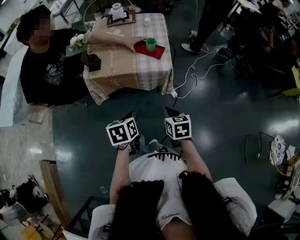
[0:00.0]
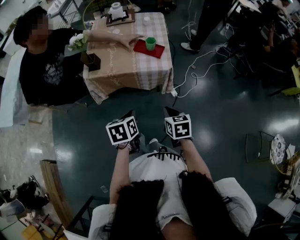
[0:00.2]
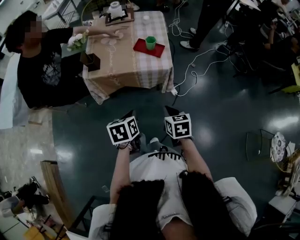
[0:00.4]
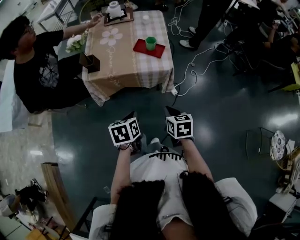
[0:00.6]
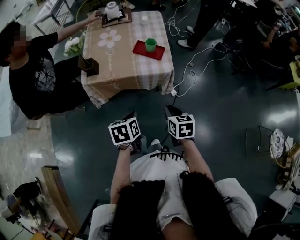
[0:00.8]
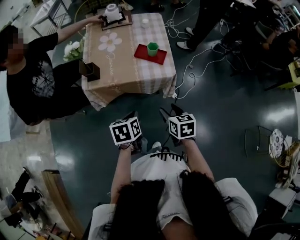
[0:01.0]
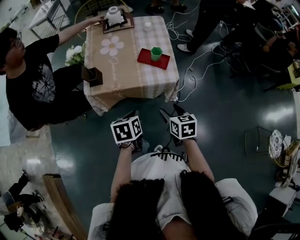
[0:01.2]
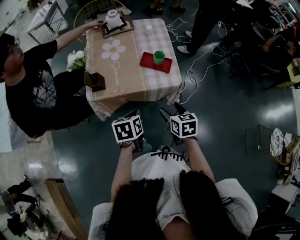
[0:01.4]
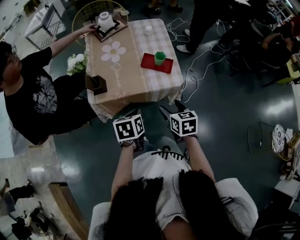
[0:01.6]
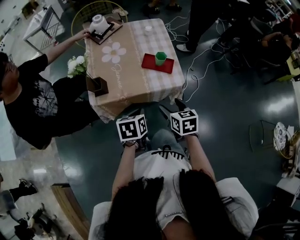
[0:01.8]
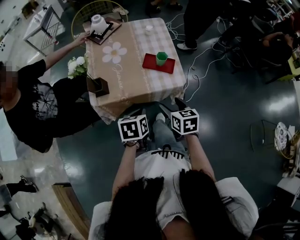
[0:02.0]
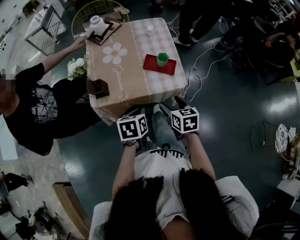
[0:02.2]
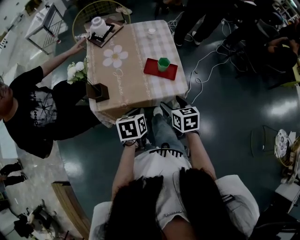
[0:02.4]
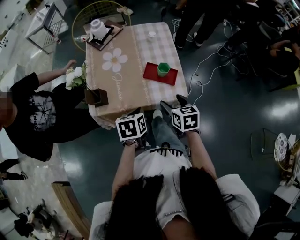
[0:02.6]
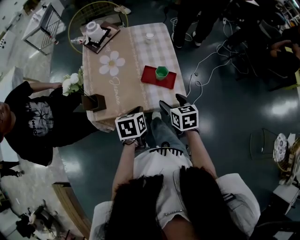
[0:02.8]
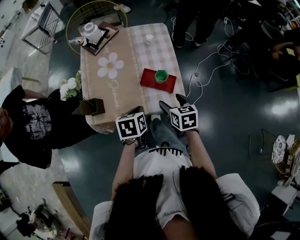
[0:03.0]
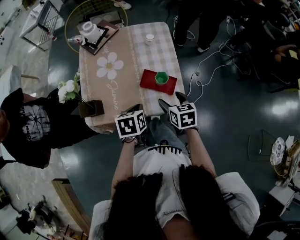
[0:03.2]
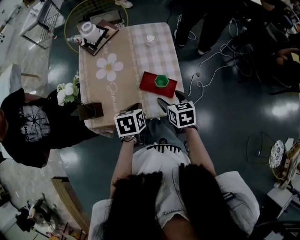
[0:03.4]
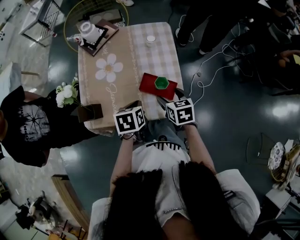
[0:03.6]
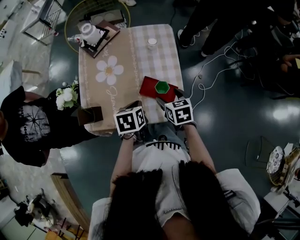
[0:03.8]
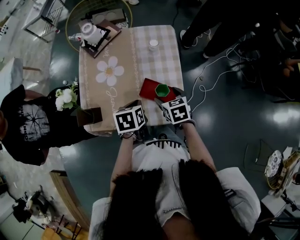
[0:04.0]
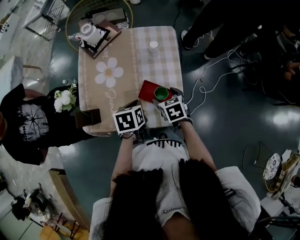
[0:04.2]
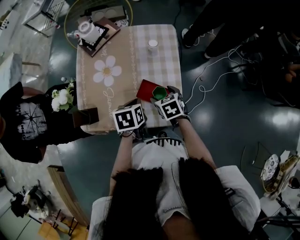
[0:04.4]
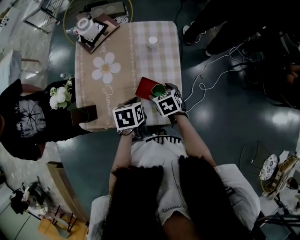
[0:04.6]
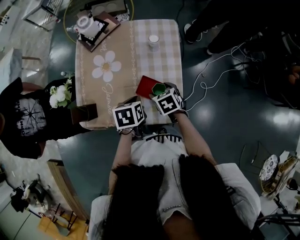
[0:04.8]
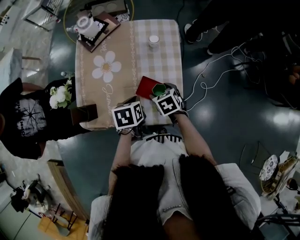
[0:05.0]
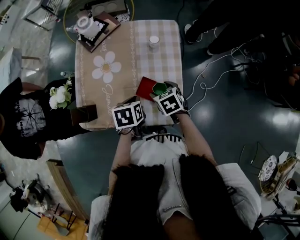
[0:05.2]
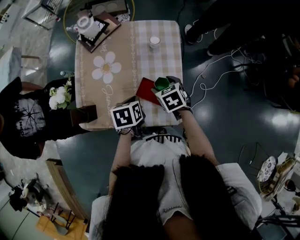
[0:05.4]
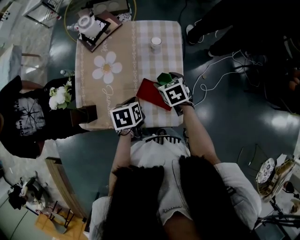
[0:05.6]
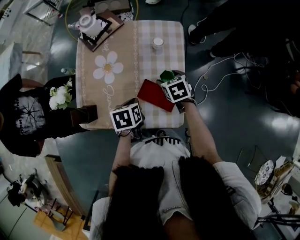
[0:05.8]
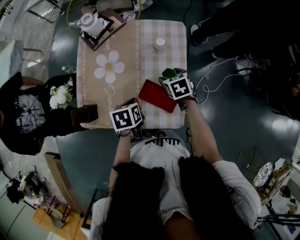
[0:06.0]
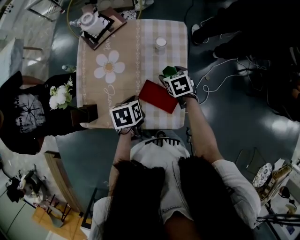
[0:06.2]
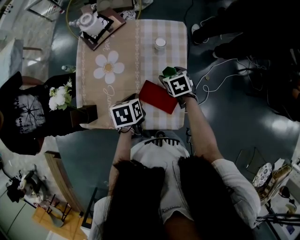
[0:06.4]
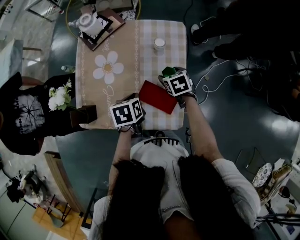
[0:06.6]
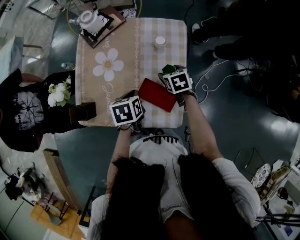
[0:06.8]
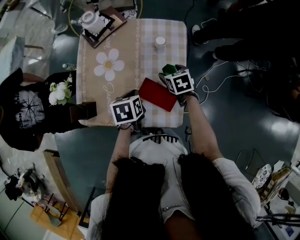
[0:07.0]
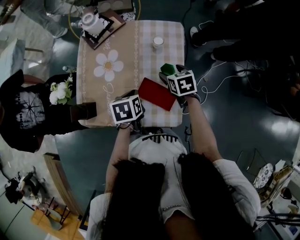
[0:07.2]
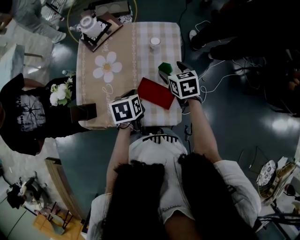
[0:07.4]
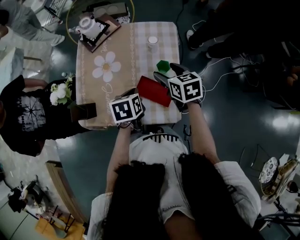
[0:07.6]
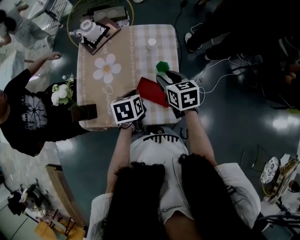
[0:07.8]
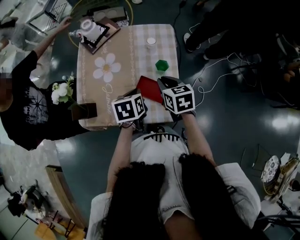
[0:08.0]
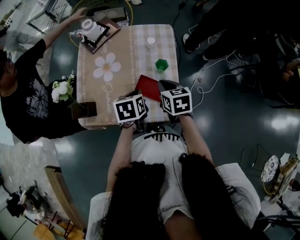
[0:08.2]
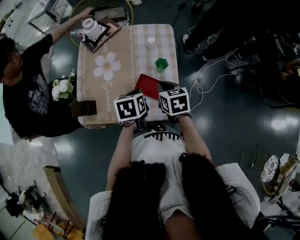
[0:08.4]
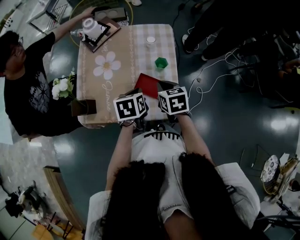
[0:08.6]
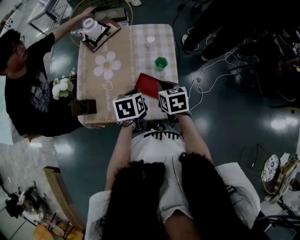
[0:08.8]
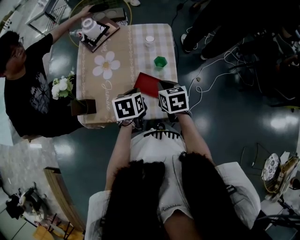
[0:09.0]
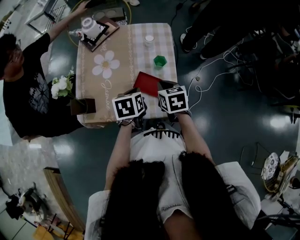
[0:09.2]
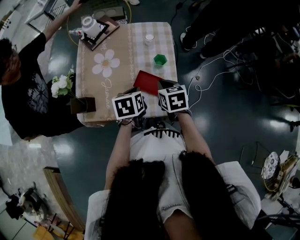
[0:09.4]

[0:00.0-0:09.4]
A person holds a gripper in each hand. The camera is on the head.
0:00.0 to 0:01.6: The two grippers go roughly 20 cm forward and to the left. The right gripper opens up.
0:01.6 to 0:03.2: Both grippers move forward, roughly 20 cm.
0:03.2 to 0:04.8: The left gripper is displaced forward by approximately 10 cm, while the right gripper travels forward and downward by some 15 cm, and changes its angle by approximately 30 degrees.
0:04.8 to 0:06.2: The right gripper moves forward, roughly 10 cm.
0:06.2 to 0:07.8: The right gripper travels upward and backward by roughly 15 cm, turns by about 20 degrees, and closes, while the left gripper moves approximately 5 cm.
0:07.8 to 0:09.4: The right gripper moves backward, some 5 cm, and closes its fingers.

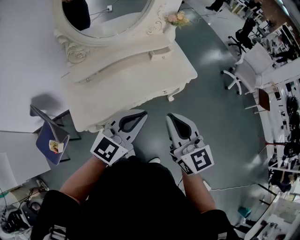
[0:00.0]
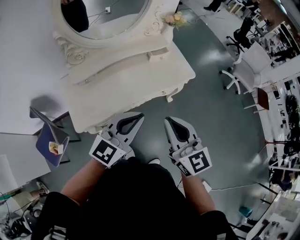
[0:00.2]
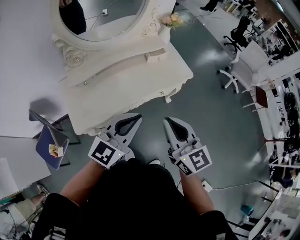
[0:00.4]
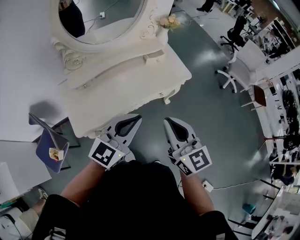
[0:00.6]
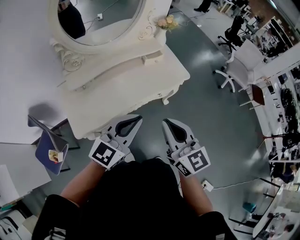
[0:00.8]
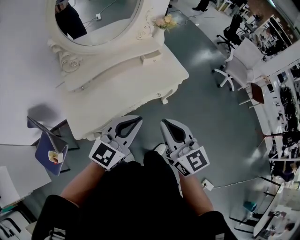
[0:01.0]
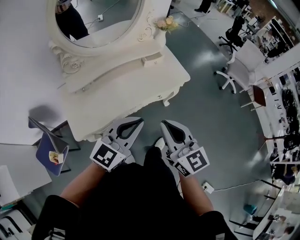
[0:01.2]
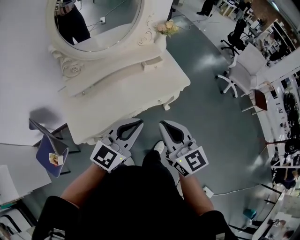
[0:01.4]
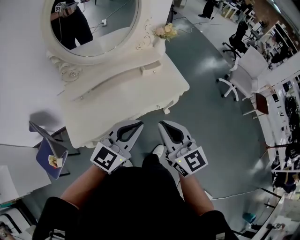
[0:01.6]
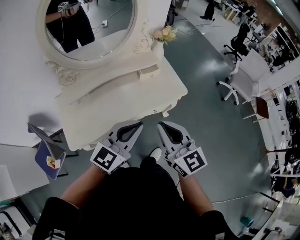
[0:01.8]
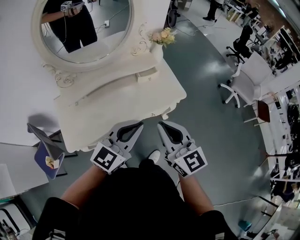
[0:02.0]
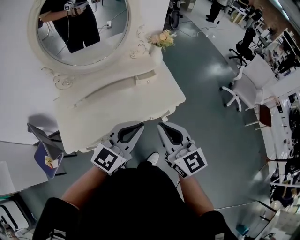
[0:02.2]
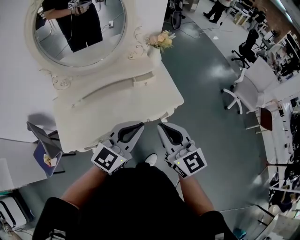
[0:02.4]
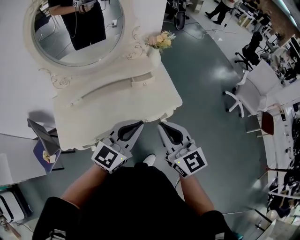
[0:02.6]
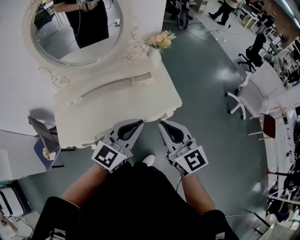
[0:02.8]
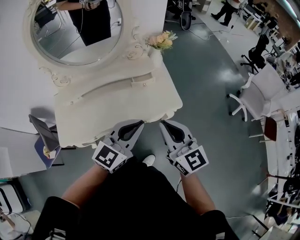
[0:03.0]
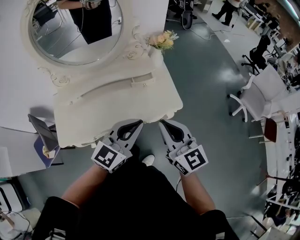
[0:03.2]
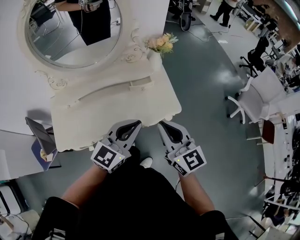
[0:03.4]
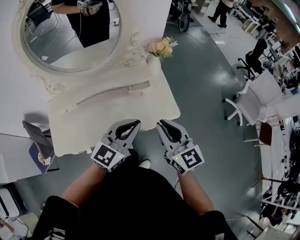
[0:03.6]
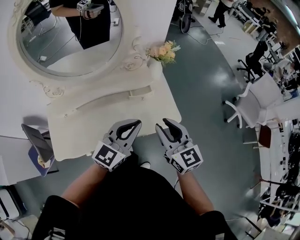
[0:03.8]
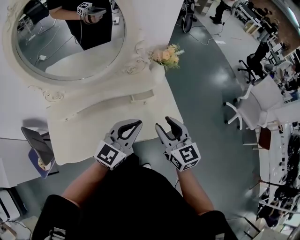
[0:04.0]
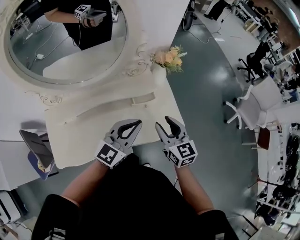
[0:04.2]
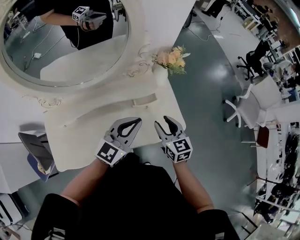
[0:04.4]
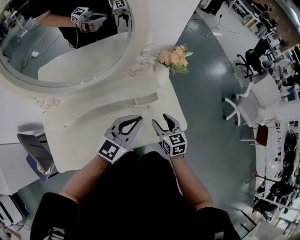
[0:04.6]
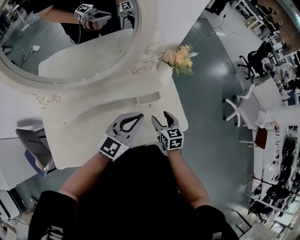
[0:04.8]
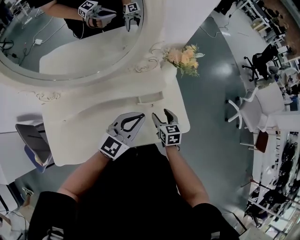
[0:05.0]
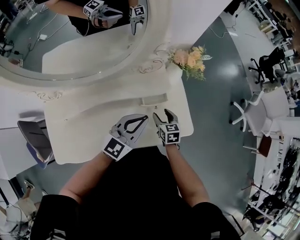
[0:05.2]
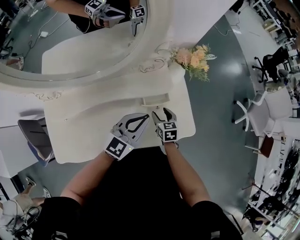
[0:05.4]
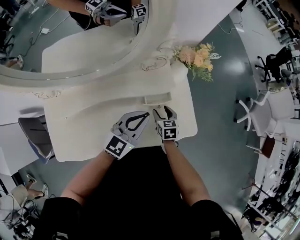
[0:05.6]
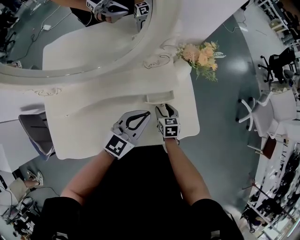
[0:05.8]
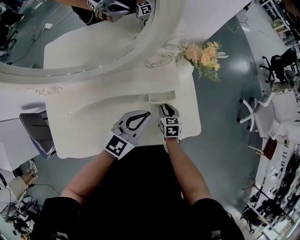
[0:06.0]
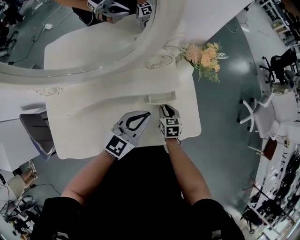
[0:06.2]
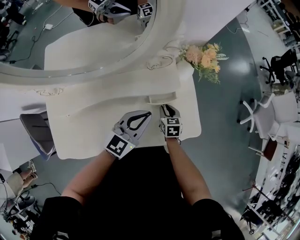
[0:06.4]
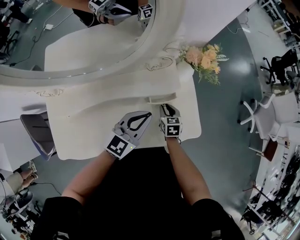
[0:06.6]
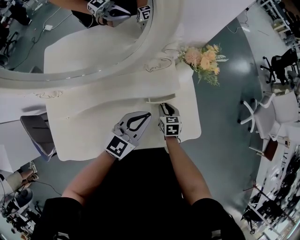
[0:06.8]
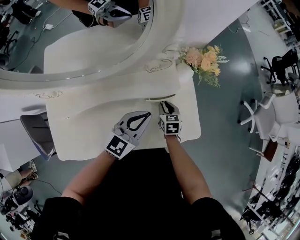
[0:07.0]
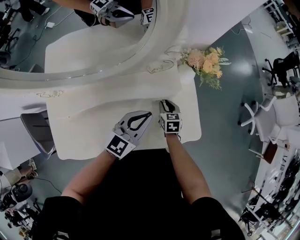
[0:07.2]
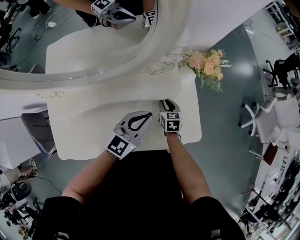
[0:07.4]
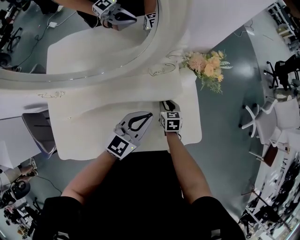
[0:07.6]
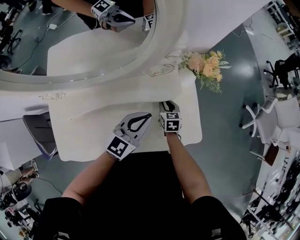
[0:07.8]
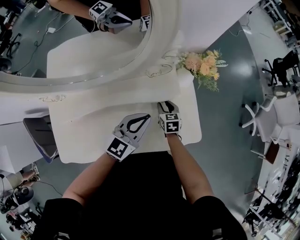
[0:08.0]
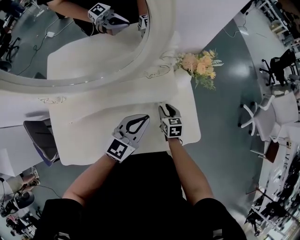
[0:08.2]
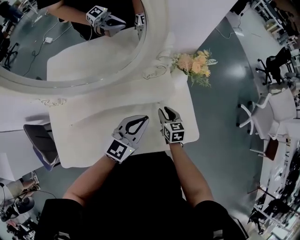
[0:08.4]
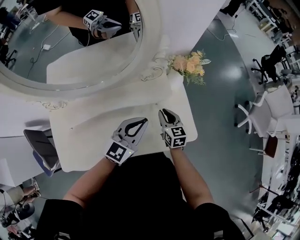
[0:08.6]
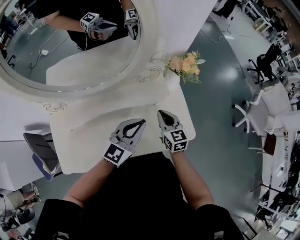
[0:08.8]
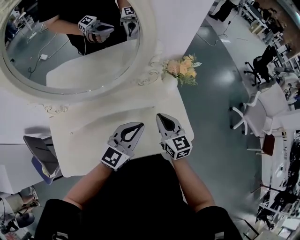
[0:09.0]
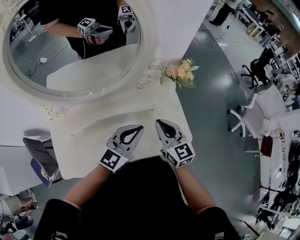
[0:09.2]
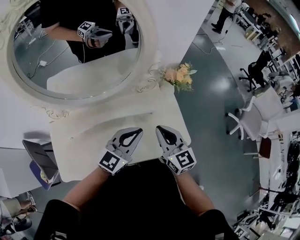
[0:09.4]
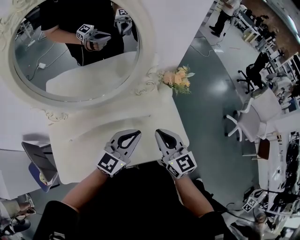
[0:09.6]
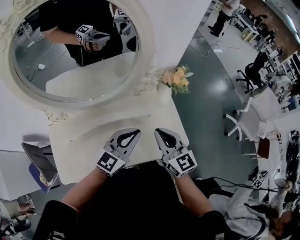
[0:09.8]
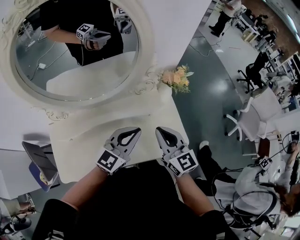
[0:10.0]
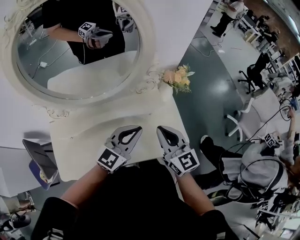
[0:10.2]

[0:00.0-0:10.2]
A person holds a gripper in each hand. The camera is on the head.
0:00.0 to 0:01.4: The grippers move only a little.
0:01.4 to 0:03.0: The two grippers go approximately 25 cm to the right and forward.
0:03.0 to 0:04.4: The left gripper is displaced forward by roughly 20 cm; the right gripper shifts roughly 30 cm forward and downward, turns by some 20 degrees, and opens.
0:04.4 to 0:05.8: The right gripper moves downward and forward, some 25 cm, and changes its angle by roughly 20 degrees. Meanwhile the left gripper is displaced downward and forward by roughly 10 cm.
0:05.8 to 0:07.2: The right gripper closes its fingers.
0:07.2 to 0:08.8: The left gripper travels upward by about 5 cm. Meanwhile the right gripper travels upward by roughly 15 cm, rotates roughly 20 degrees, and closes up.
0:08.8 to 0:10.2: The right gripper moves upward and backward, approximately 20 cm, while the left gripper travels upward by roughly 5 cm.

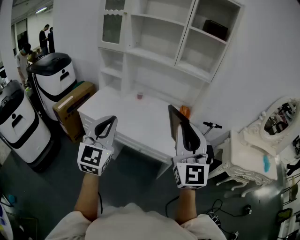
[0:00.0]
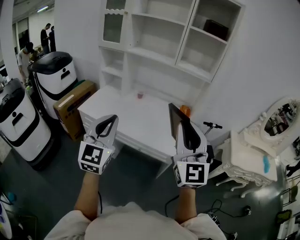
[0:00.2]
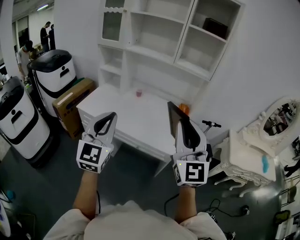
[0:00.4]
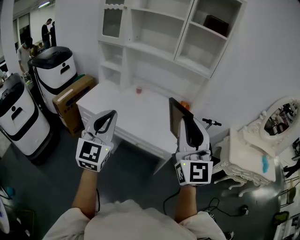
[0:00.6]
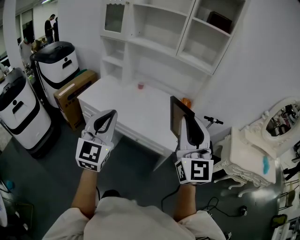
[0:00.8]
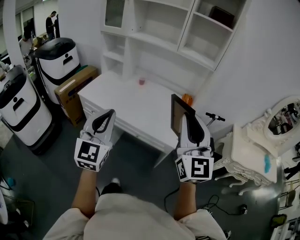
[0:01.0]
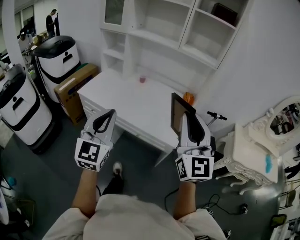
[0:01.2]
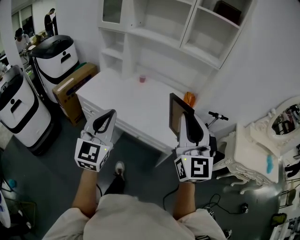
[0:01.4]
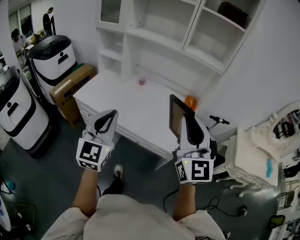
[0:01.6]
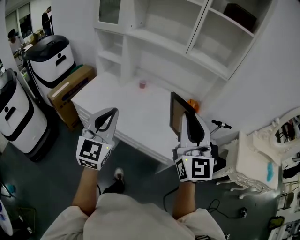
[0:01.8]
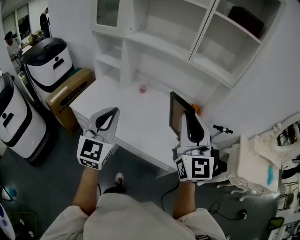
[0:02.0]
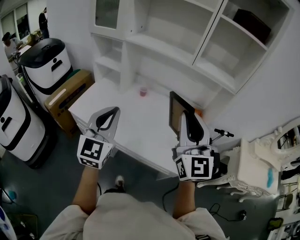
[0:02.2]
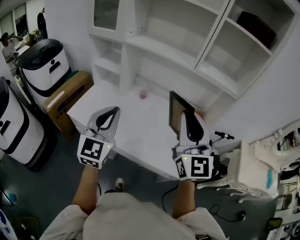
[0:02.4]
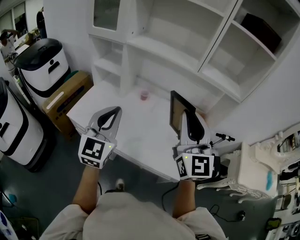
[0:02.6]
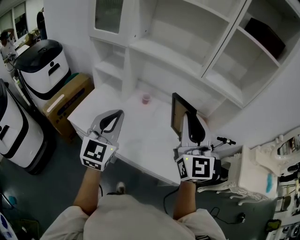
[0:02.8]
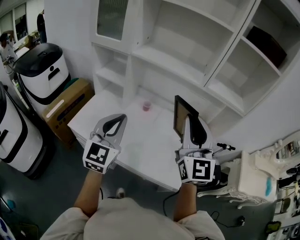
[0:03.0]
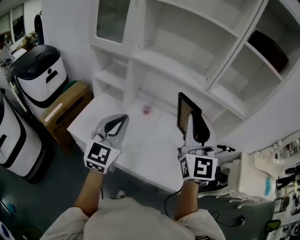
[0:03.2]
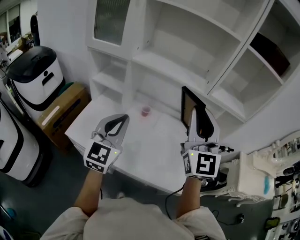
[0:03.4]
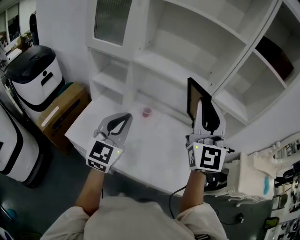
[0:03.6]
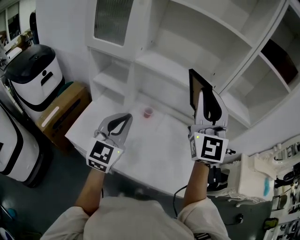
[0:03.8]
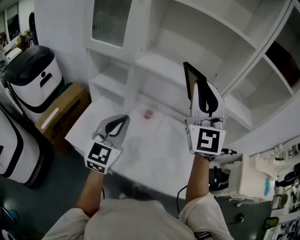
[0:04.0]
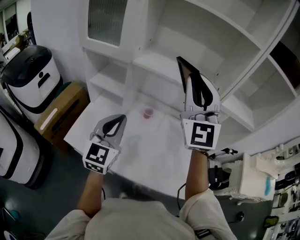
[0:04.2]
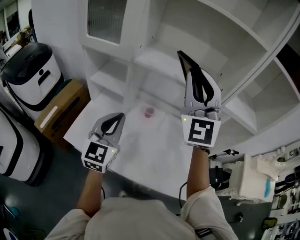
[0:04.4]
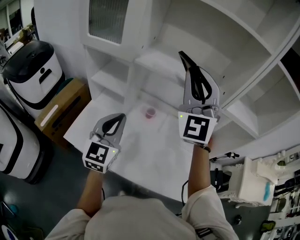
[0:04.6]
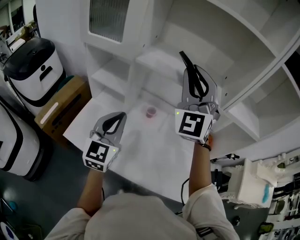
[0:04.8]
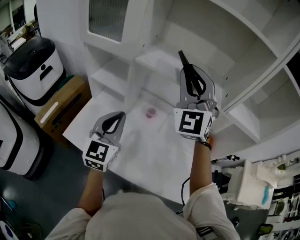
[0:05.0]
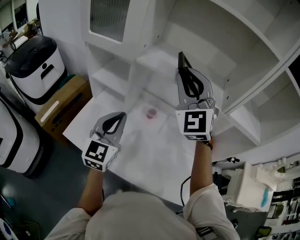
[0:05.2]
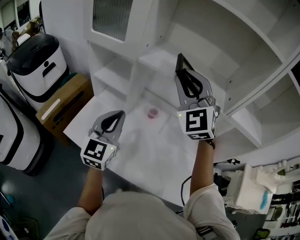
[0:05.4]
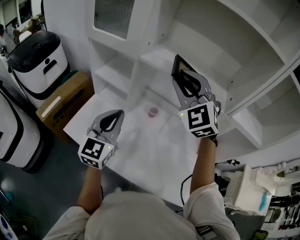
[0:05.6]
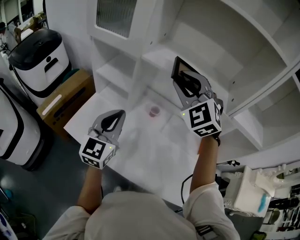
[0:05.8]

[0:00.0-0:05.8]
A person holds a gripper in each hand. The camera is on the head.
0:00.0 to 0:01.4: The right gripper goes about 5 cm forward. Meanwhile the left gripper shifts roughly 5 cm downward.
0:01.4 to 0:02.8: The grippers both shift forward by roughly 30 cm.
0:02.8 to 0:04.4: The left gripper heads forward and to the left, covering roughly 20 cm; the right gripper heads forward, to the left and upward, covering about 30 cm, and swivels approximately 30 degrees.
0:04.4 to 0:05.8: The right gripper heads downward and forward, covering about 15 cm, and angles its fingers downward, by roughly 40 degrees.
